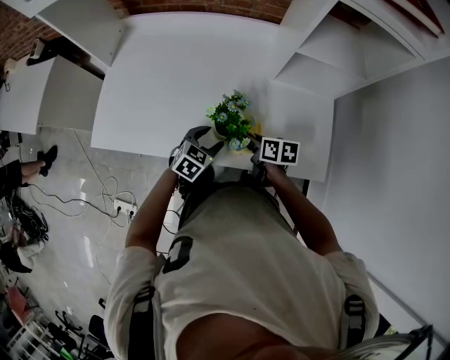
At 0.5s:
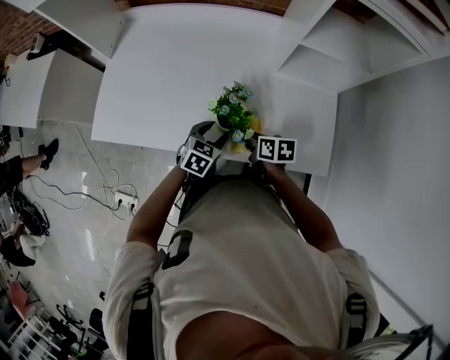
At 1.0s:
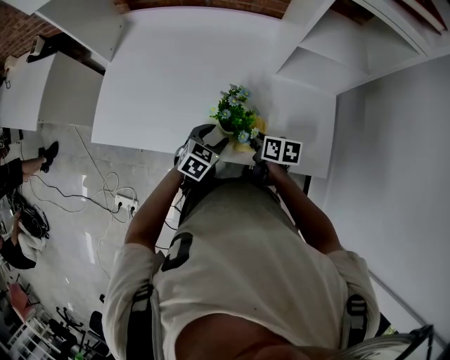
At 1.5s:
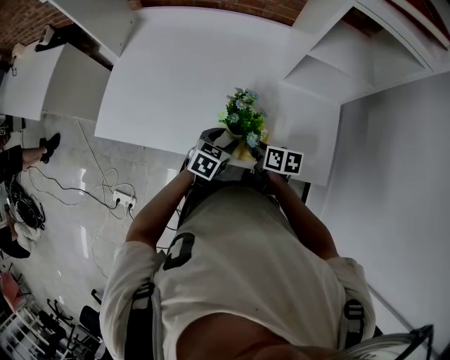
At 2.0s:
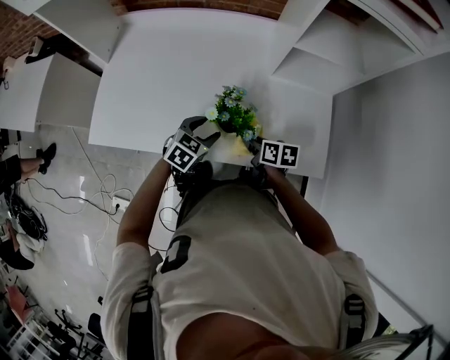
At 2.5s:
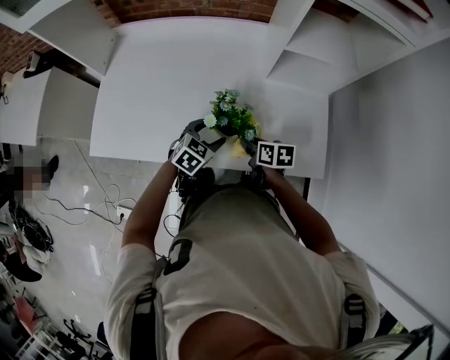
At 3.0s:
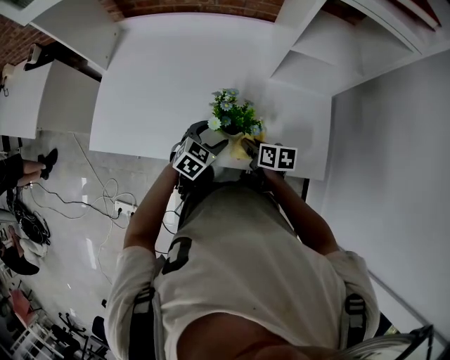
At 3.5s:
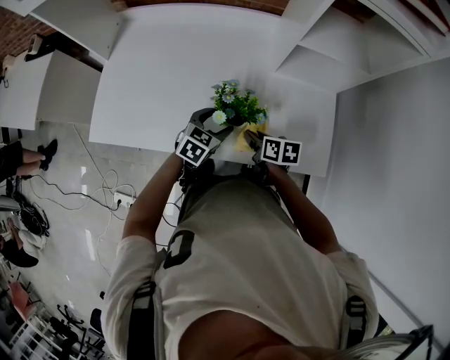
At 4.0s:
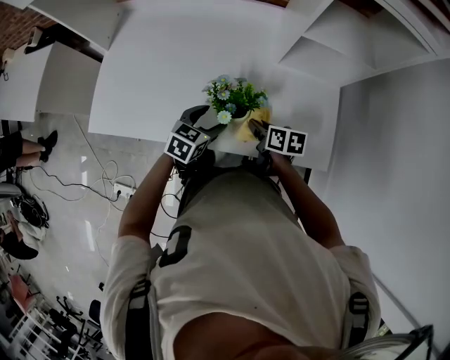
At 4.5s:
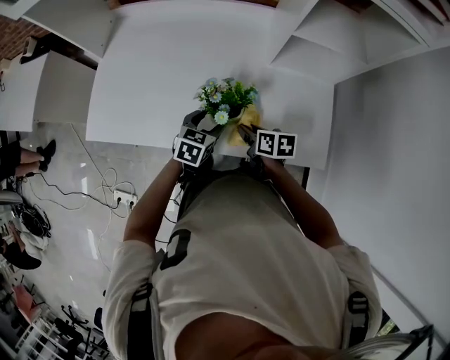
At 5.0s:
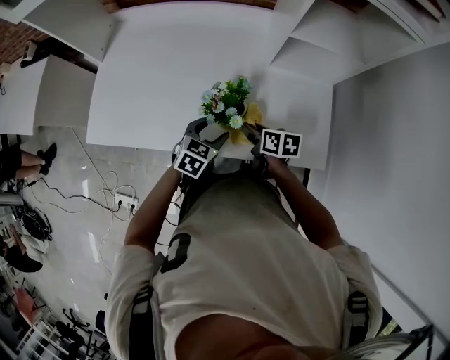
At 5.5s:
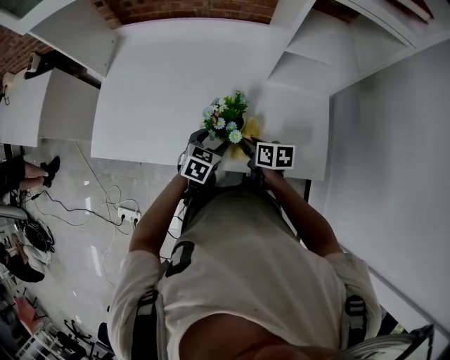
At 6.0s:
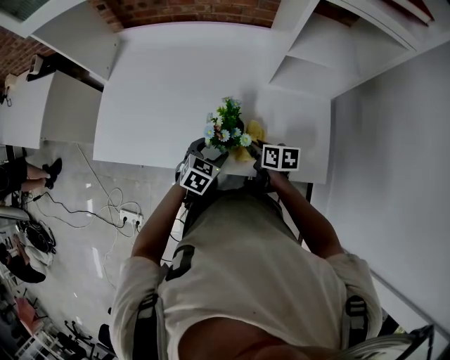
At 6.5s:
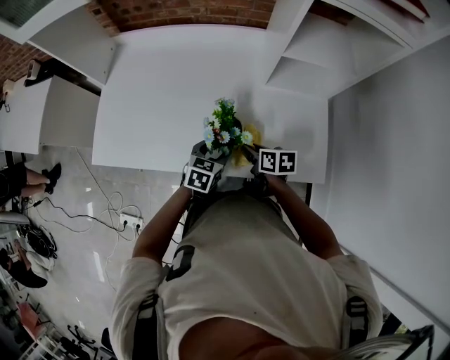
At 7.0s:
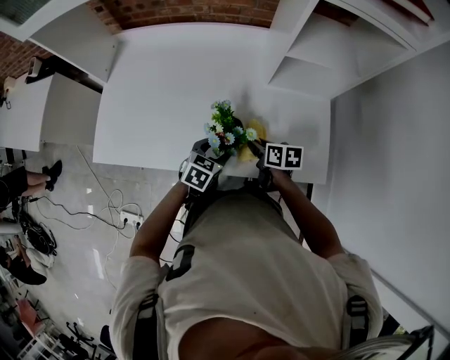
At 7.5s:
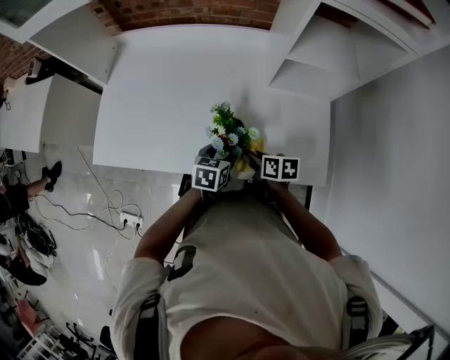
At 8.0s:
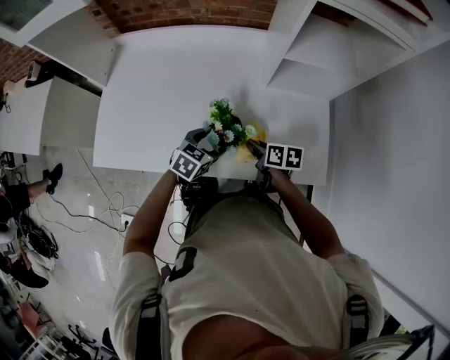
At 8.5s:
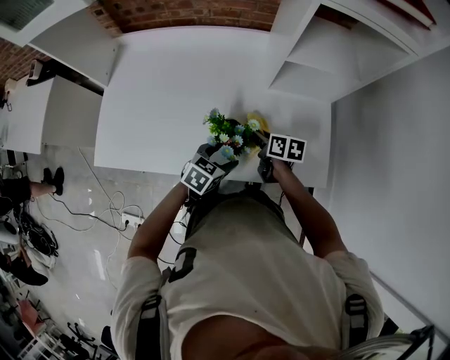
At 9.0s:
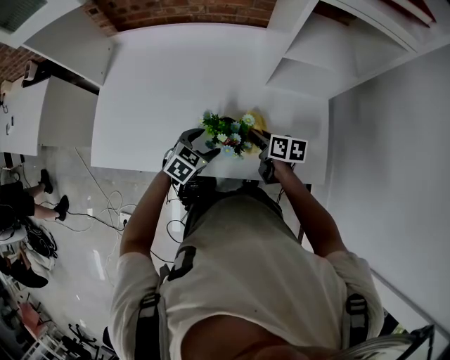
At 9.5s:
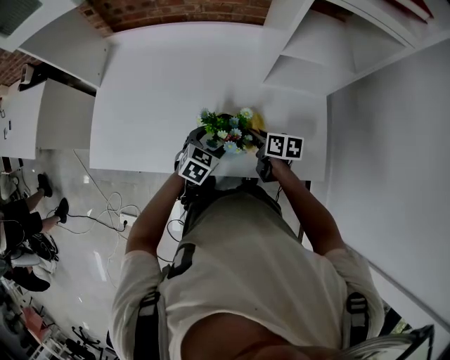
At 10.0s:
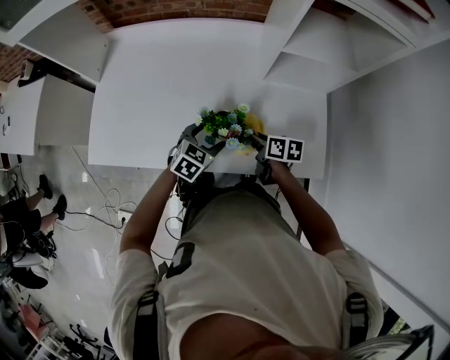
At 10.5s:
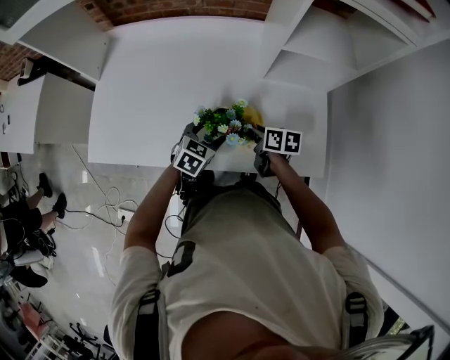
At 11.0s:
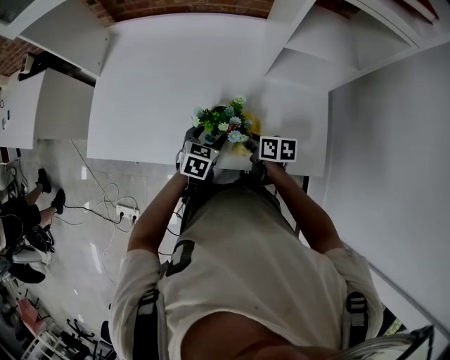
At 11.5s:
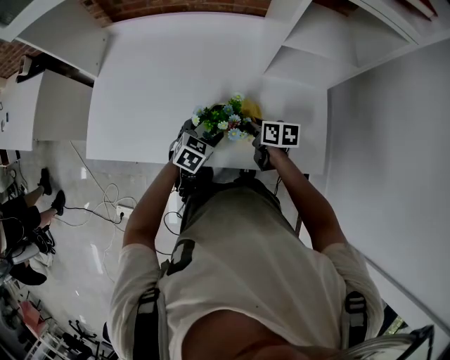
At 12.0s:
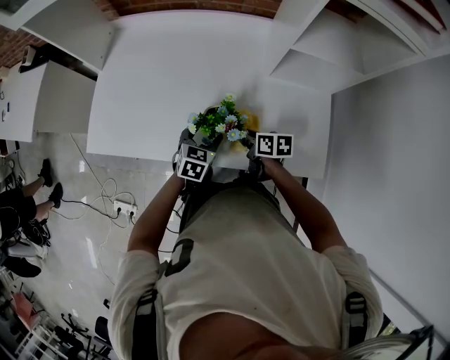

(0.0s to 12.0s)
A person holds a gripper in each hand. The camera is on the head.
0.0s - 6.0s: The grippers make only small movements.
8.0s - 12.0s: The grippers stay close to where they were, moving slightly.

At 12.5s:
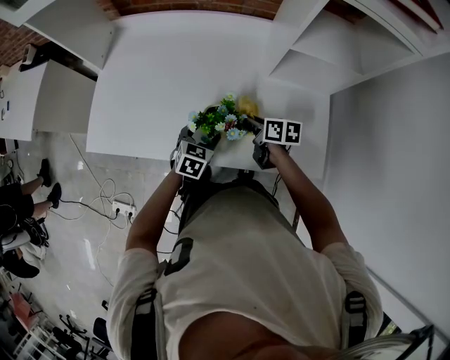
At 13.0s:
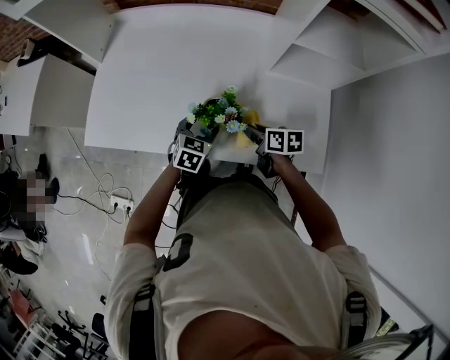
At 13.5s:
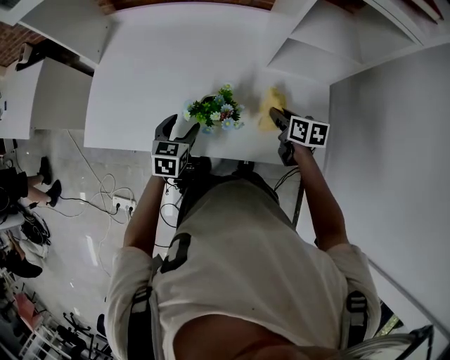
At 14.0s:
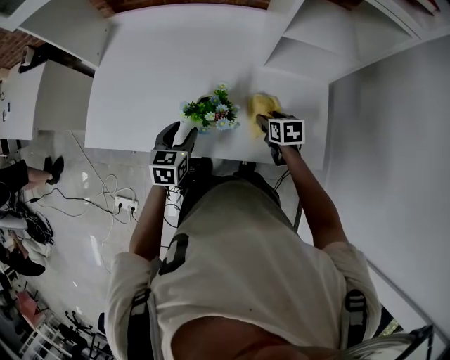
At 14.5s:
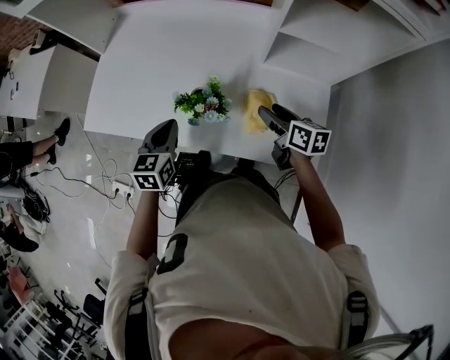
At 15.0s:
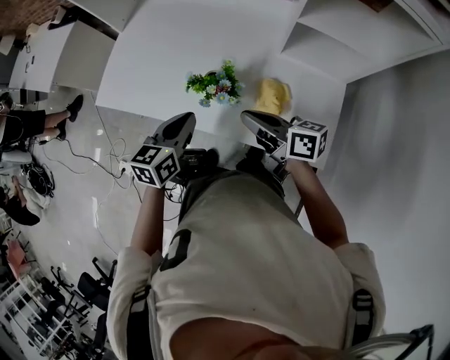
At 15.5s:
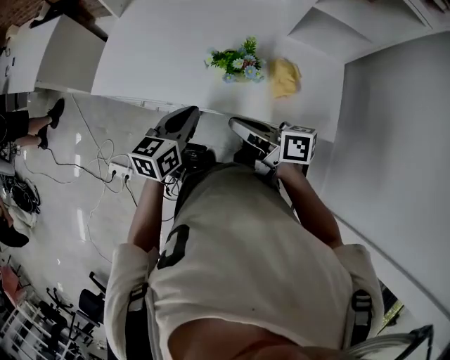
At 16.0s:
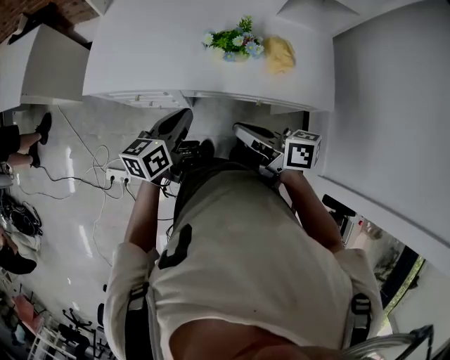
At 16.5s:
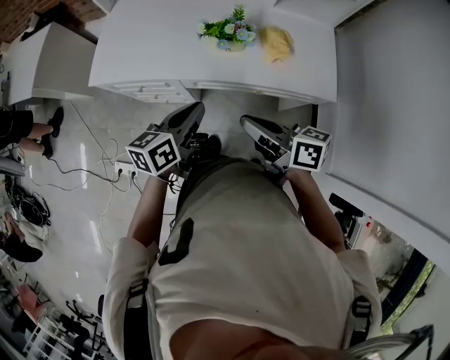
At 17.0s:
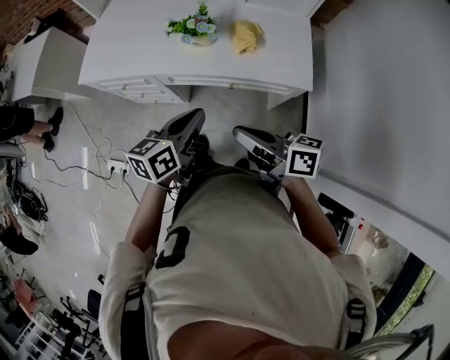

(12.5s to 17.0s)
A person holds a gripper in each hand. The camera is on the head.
12.5s - 14.5s: The left gripper goes about 15 cm upward and to the left, changes its angle by approximately 30 degrees, and closes; the right gripper goes approximately 10 cm to the right and upward, and opens.
14.5s - 17.0s: The right gripper is displaced backward and to the left by about 40 cm, changes its angle by approximately 30 degrees, and closes up; the left gripper goes about 30 cm backward, and changes its angle by approximately 30 degrees.

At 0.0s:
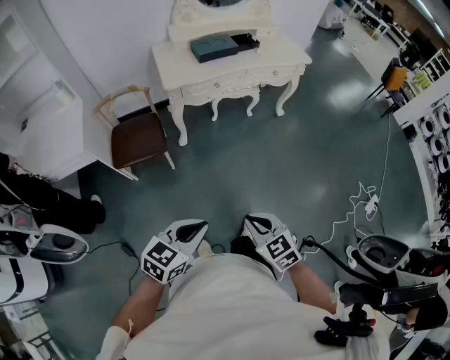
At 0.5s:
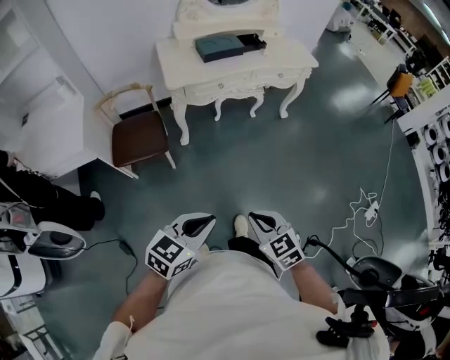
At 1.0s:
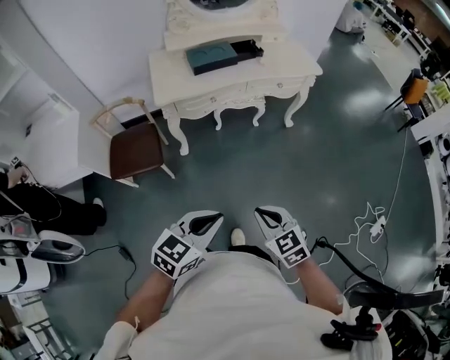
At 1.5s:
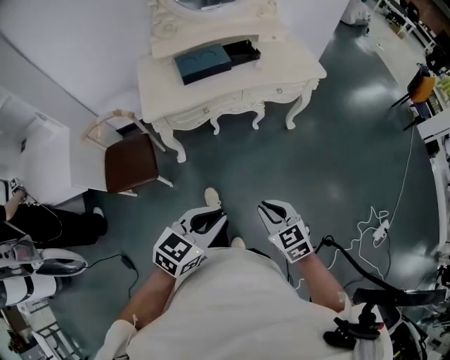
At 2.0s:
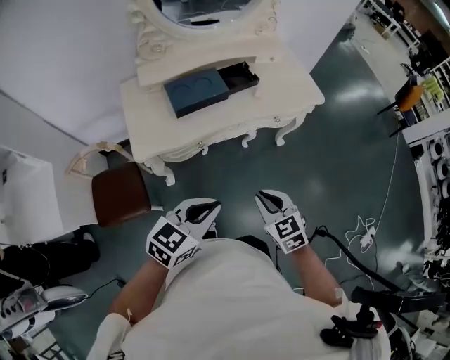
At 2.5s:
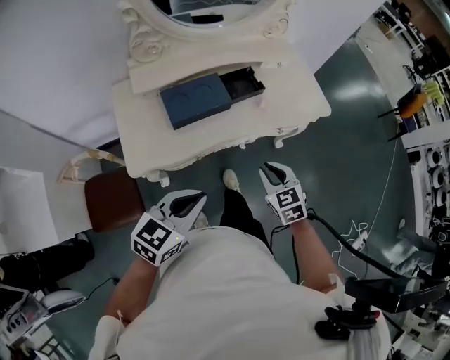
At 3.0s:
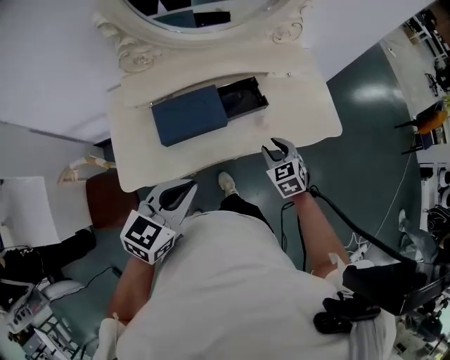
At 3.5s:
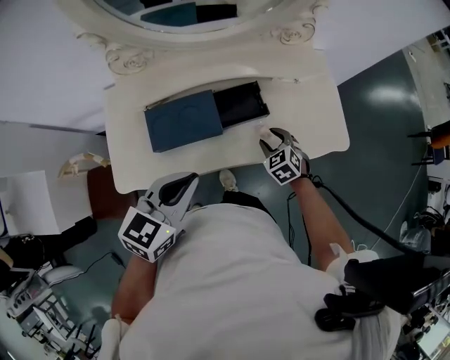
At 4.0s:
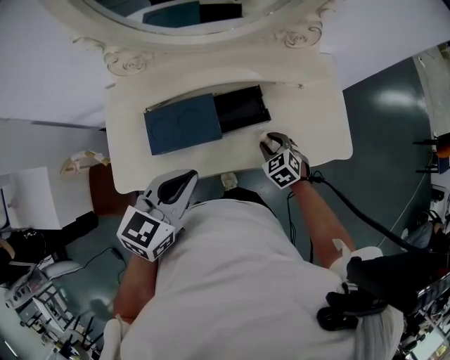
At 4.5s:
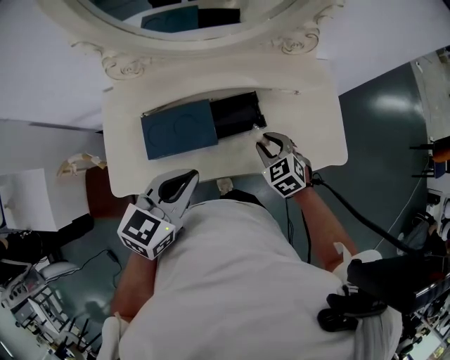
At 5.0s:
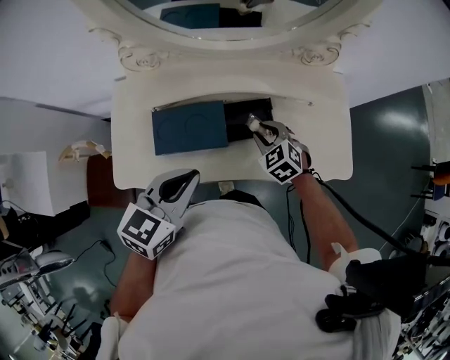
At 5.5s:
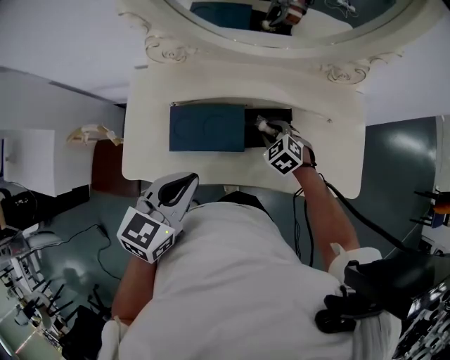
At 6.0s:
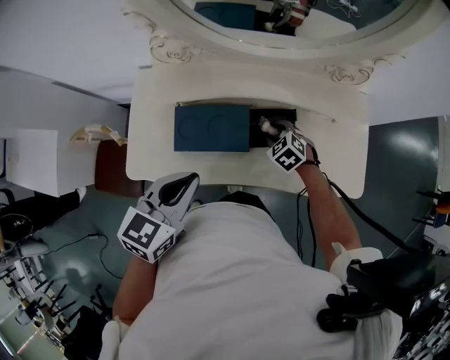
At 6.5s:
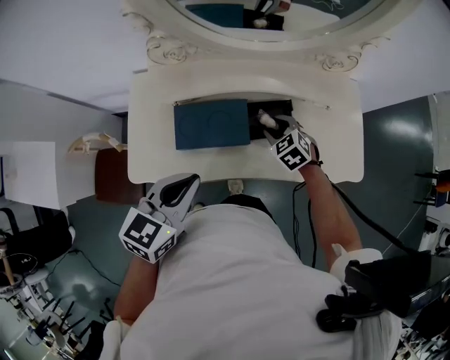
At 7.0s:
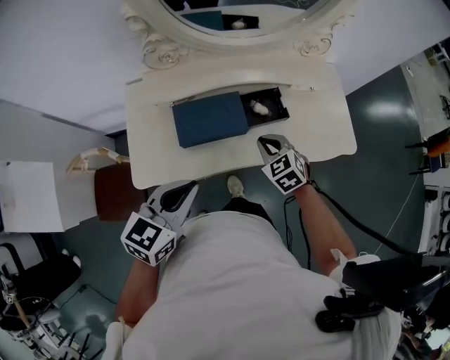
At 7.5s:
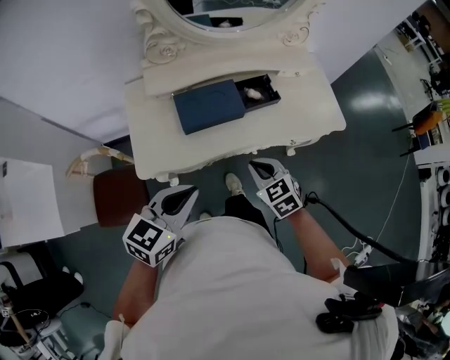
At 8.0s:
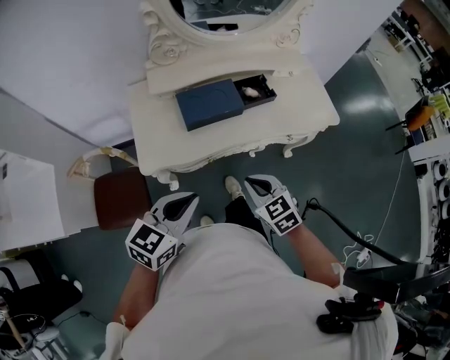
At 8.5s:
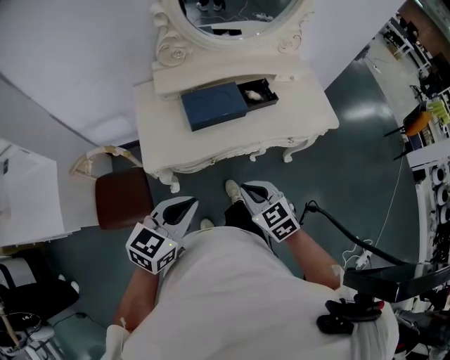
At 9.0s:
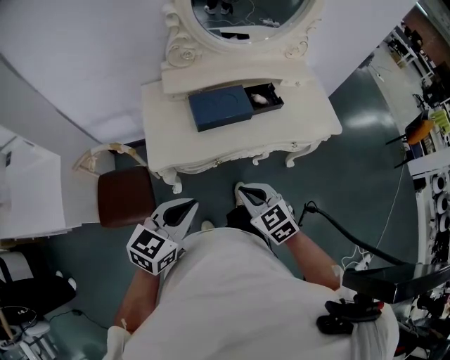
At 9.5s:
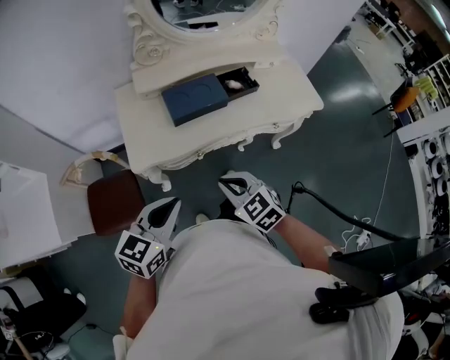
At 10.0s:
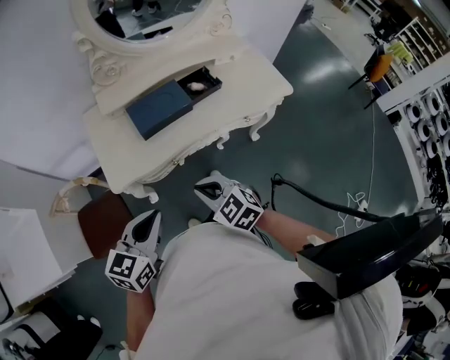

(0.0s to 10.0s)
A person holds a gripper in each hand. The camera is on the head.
0.0s - 2.0s: The pair of grippers is taken forward, some 60 cm.
2.0s - 4.0s: The two grippers travel together, forward, about 50 cm. The right gripper swivels roughly 30 degrees, and opens up. The left gripper rotates roughly 20 degrees.
4.0s - 6.0s: The left gripper heads to the left, covering approximately 5 cm, while the right gripper goes approximately 15 cm forward and to the left.
6.0s - 8.0s: The grippers both shift backward by approximately 35 cm. The right gripper changes its angle by roughly 30 degrees, and closes up. The left gripper rotates about 20 degrees.
8.0s - 10.0s: The right gripper is displaced to the left by about 5 cm.

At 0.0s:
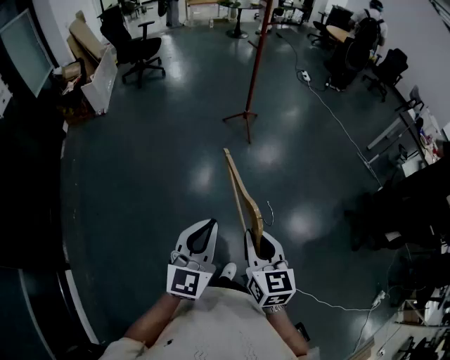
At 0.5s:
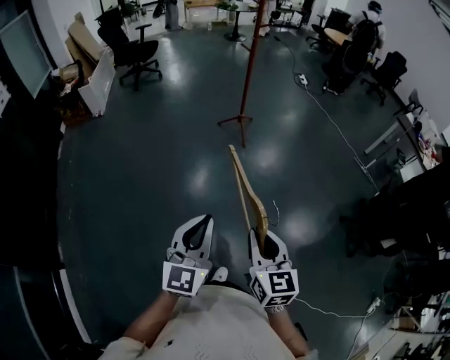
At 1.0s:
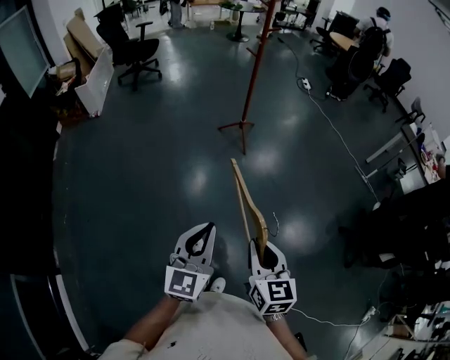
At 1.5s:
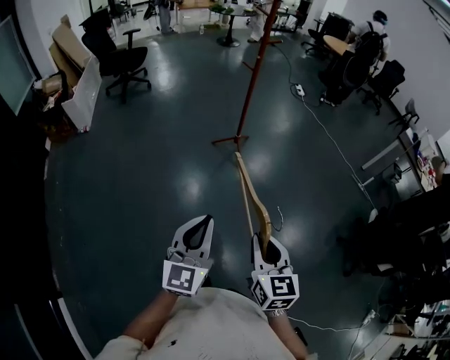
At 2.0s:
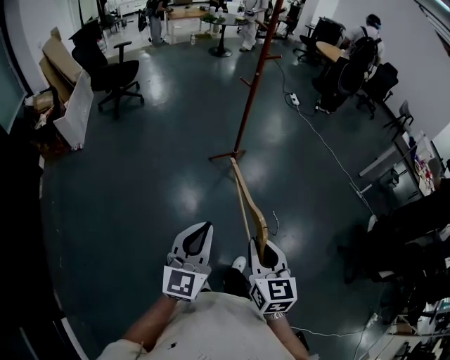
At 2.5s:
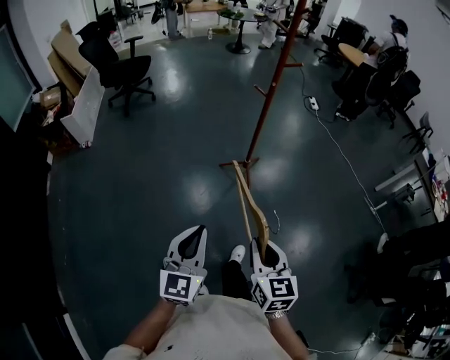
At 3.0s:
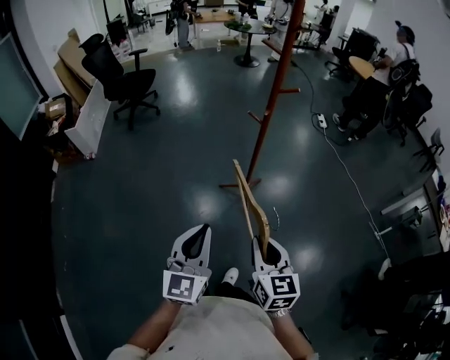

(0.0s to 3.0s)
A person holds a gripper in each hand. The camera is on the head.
0.0s - 1.5s: Both grippers move forward, approximately 30 cm.
1.5s - 3.0s: Both grippers are carried forward, some 40 cm.
